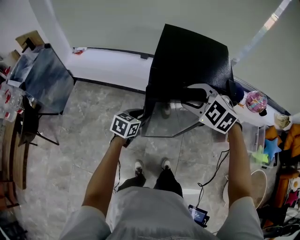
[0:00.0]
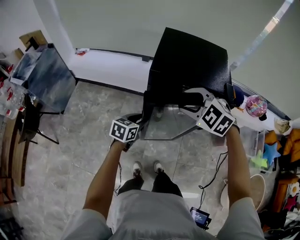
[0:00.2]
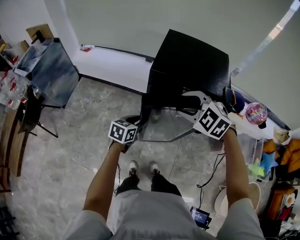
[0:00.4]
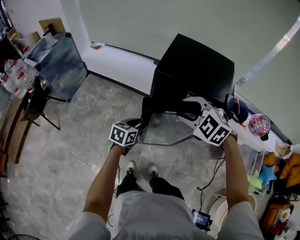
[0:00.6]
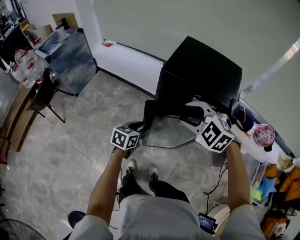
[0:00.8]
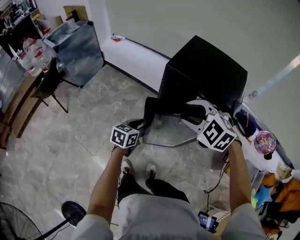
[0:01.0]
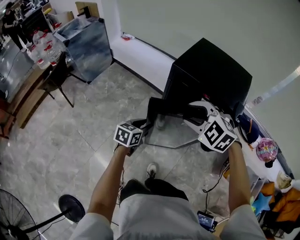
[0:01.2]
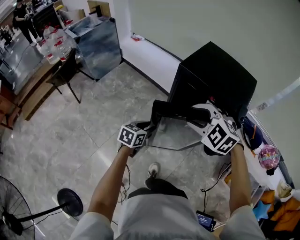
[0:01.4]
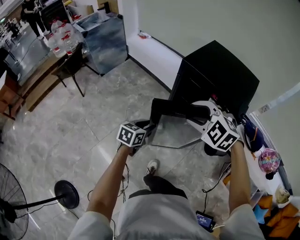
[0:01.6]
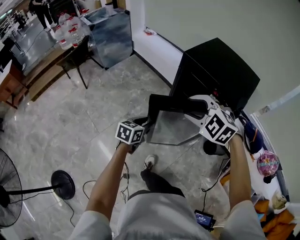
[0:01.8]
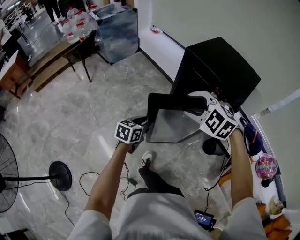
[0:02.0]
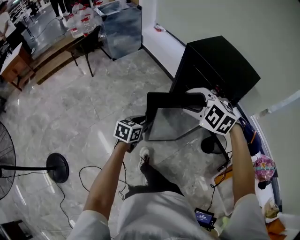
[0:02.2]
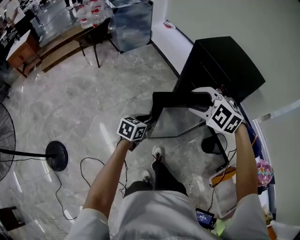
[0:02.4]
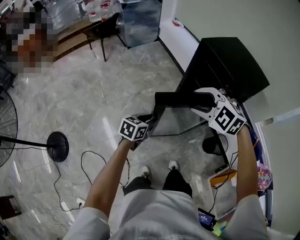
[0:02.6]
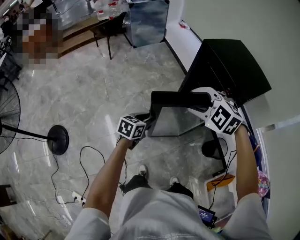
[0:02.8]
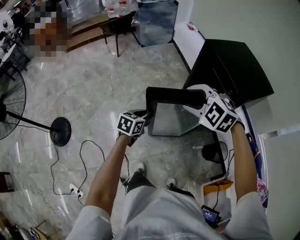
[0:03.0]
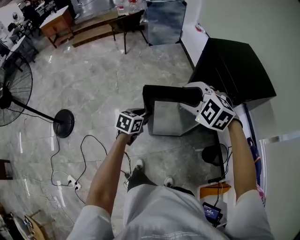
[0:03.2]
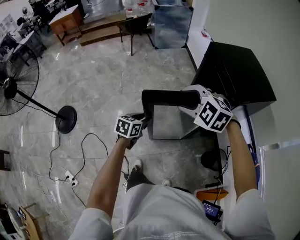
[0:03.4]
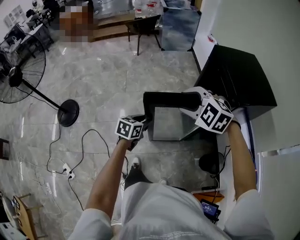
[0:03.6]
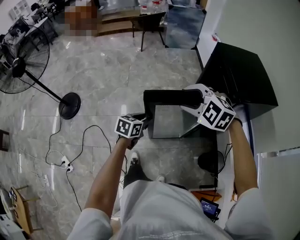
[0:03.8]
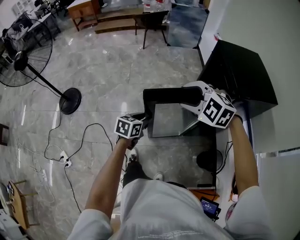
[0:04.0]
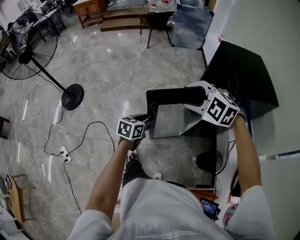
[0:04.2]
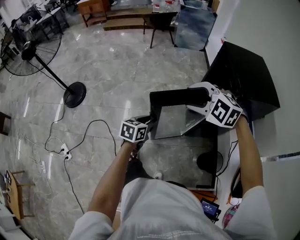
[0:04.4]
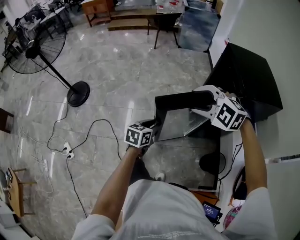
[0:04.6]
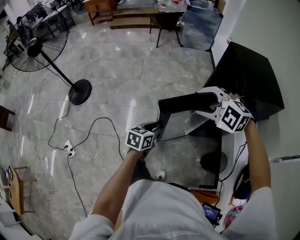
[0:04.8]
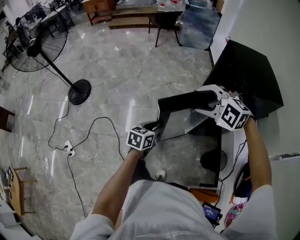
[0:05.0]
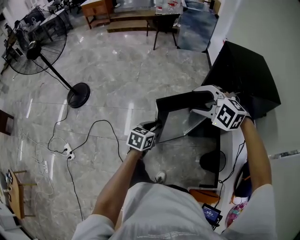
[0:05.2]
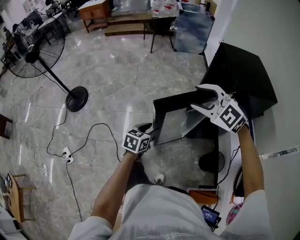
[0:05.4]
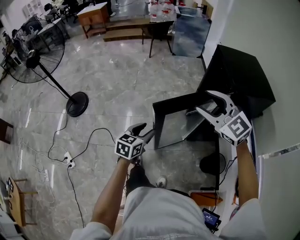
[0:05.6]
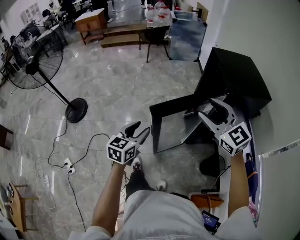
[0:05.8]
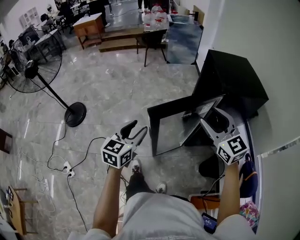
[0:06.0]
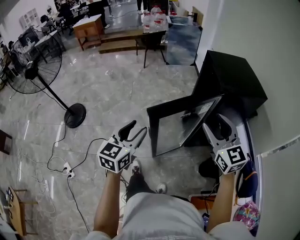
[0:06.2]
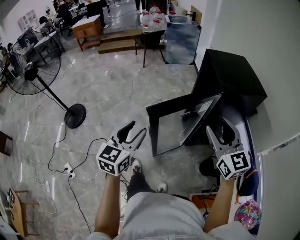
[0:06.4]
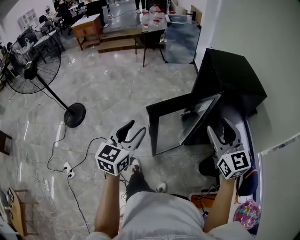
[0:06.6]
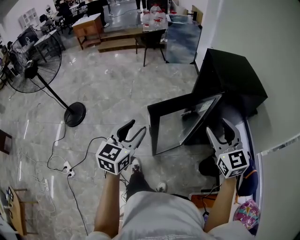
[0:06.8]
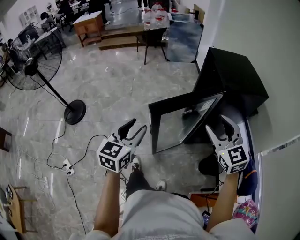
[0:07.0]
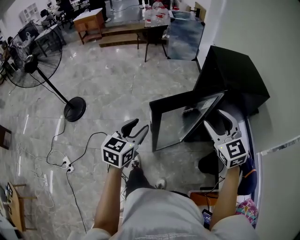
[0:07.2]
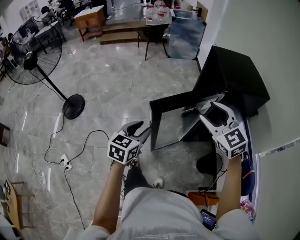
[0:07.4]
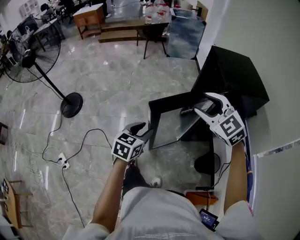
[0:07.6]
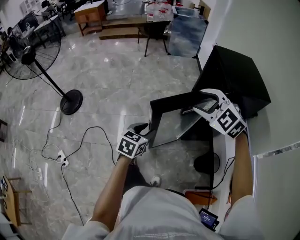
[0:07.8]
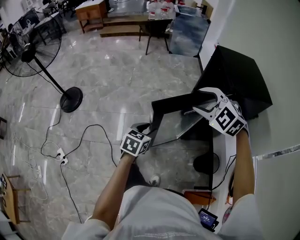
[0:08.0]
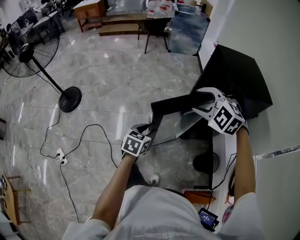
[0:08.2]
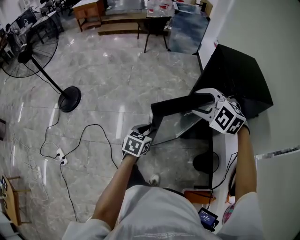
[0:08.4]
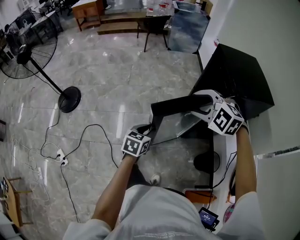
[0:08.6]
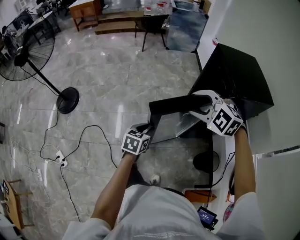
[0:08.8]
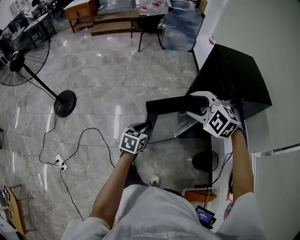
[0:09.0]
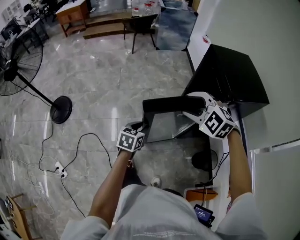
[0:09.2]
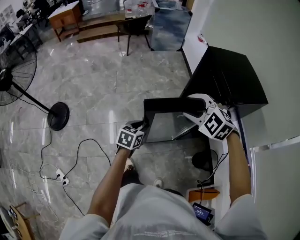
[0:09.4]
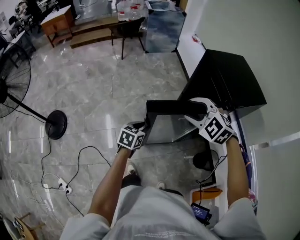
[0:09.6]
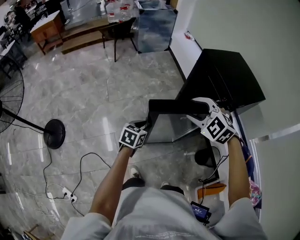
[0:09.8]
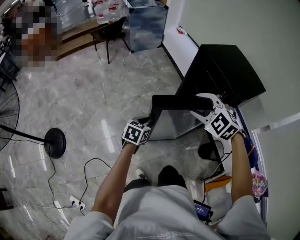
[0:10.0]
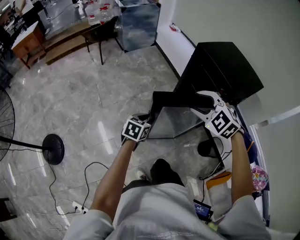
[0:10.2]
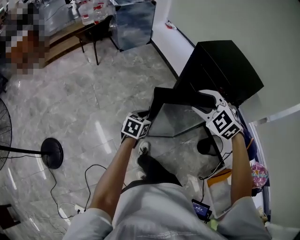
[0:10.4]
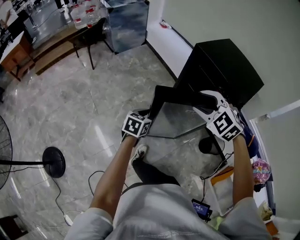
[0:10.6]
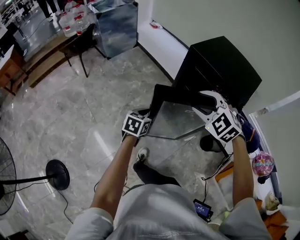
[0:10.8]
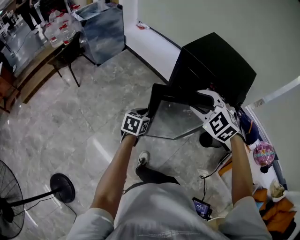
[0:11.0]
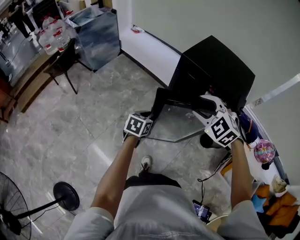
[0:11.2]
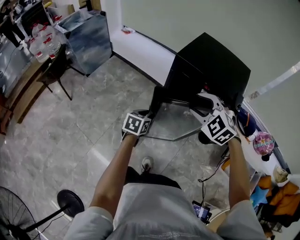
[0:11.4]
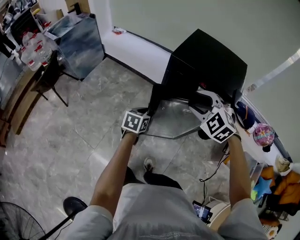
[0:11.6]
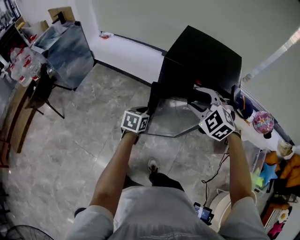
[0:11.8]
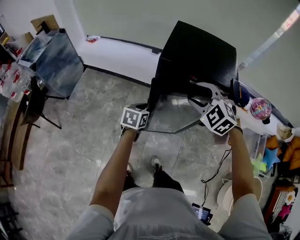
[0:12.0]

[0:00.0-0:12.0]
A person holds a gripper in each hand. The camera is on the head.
0.0 to 1.6 s: The right gripper moves approximately 10 cm, and rotates some 30 degrees, while the left gripper shifts by approximately 15 cm, and turns by about 30 degrees.
1.6 to 3.0 s: The right gripper ends up roughly 15 cm from where it was, and changes its angle by roughly 30 degrees. The left gripper shifts by approximately 20 cm, and changes its angle by approximately 30 degrees.
3.0 to 4.4 s: Both grippers travel together backward, about 15 cm. The right gripper swivels about 30 degrees, while the left gripper changes its angle by roughly 20 degrees.
4.4 to 6.0 s: The left gripper travels upward and backward by roughly 20 cm, and turns by some 30 degrees, while the right gripper moves backward, to the right and upward, approximately 15 cm, and points its fingers about 30 degrees further upward.
6.0 to 7.6 s: The right gripper changes place by roughly 5 cm, and turns by approximately 30 degrees; the left gripper travels downward by about 5 cm.
7.6 to 9.0 s: The left gripper travels downward and forward by approximately 10 cm. Meanwhile the right gripper moves forward, downward and to the left, roughly 10 cm, and rotates approximately 20 degrees.
9.0 to 10.4 s: The right gripper changes place by approximately 15 cm, and rotates about 40 degrees. The left gripper moves about 25 cm, and rotates about 30 degrees.
10.4 to 12.0 s: The left gripper ends up approximately 30 cm from where it was, and swivels some 40 degrees. Meanwhile the right gripper moves about 20 cm, and turns by some 40 degrees.

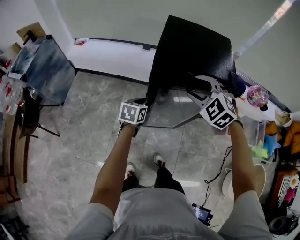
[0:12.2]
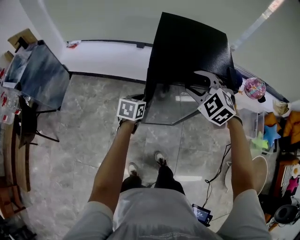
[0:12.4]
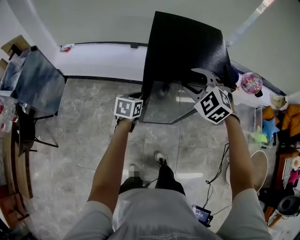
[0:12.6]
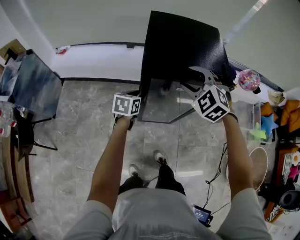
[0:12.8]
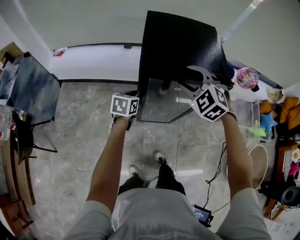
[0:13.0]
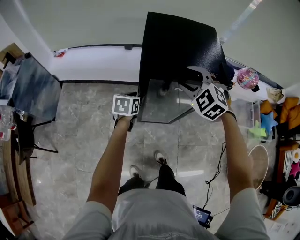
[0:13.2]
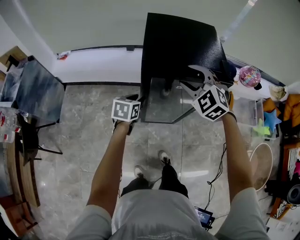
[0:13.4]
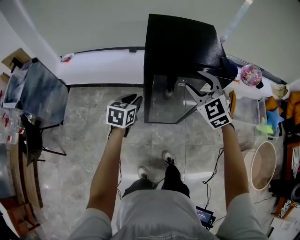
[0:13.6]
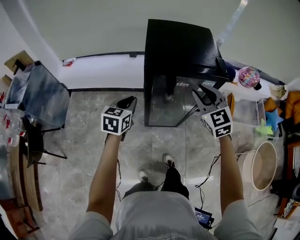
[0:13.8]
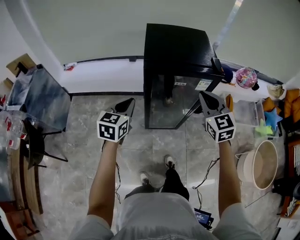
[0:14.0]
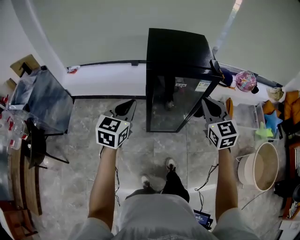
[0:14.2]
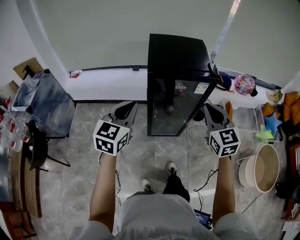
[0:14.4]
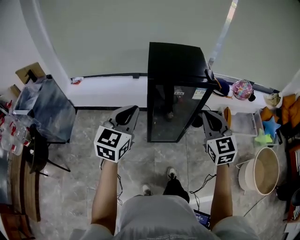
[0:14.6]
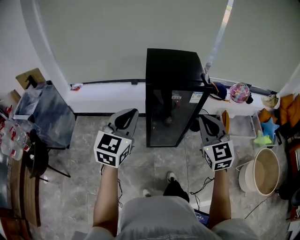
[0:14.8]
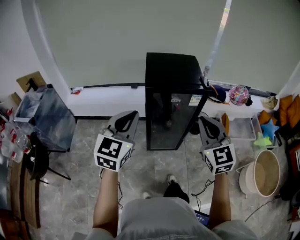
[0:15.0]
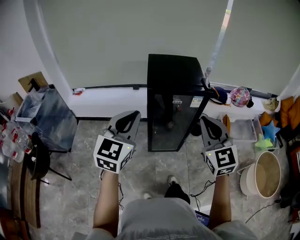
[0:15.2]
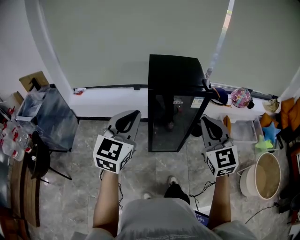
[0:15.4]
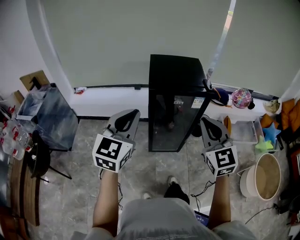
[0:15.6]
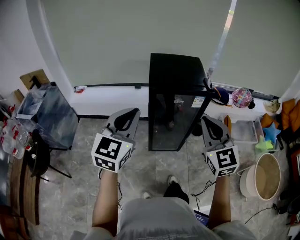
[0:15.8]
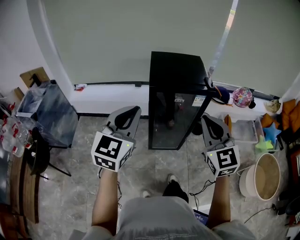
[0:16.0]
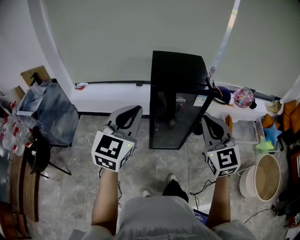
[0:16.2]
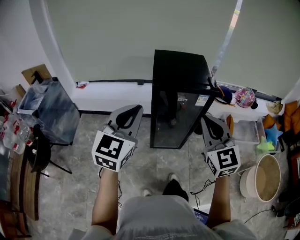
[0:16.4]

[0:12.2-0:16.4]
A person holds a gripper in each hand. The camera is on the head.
12.2 to 13.6 s: The left gripper shifts some 5 cm upward; the right gripper rotates about 30 degrees.
13.6 to 15.0 s: The left gripper heads upward and backward, covering about 35 cm, and swivels about 40 degrees; the right gripper heads backward and upward, covering approximately 25 cm, swivels roughly 30 degrees, and closes.
15.0 to 16.4 s: The grippers move only a little.

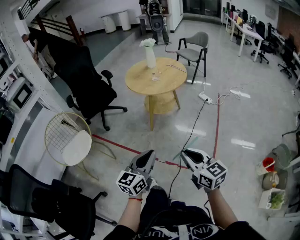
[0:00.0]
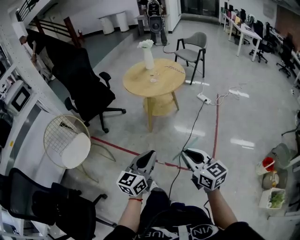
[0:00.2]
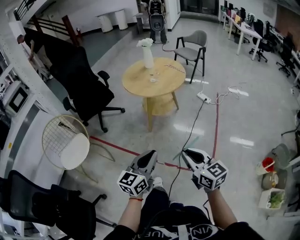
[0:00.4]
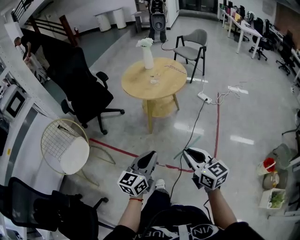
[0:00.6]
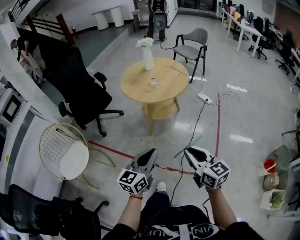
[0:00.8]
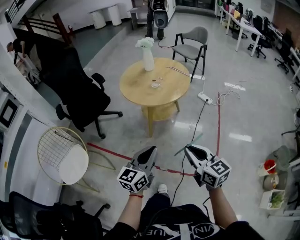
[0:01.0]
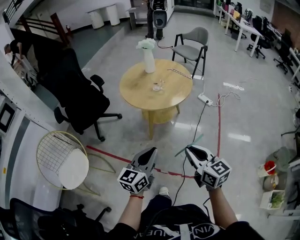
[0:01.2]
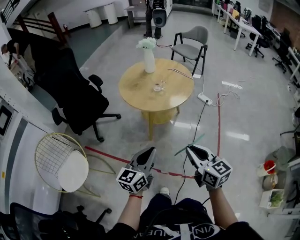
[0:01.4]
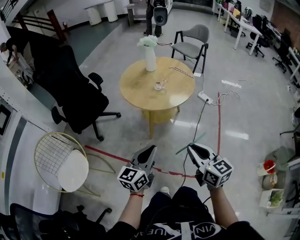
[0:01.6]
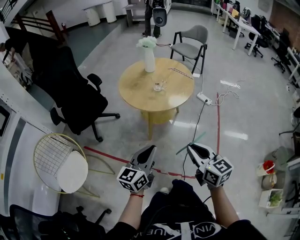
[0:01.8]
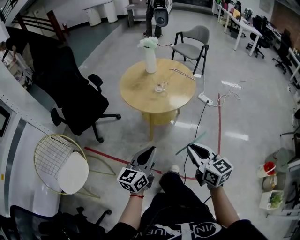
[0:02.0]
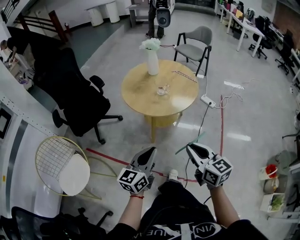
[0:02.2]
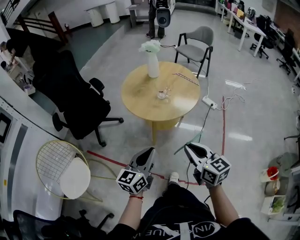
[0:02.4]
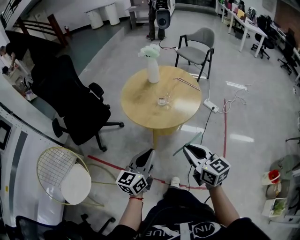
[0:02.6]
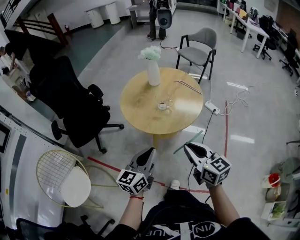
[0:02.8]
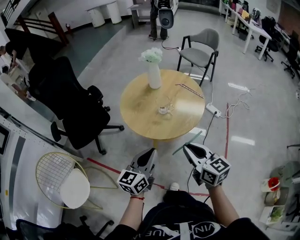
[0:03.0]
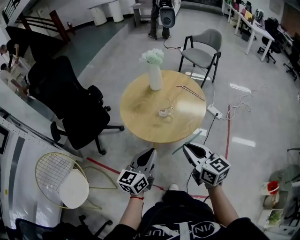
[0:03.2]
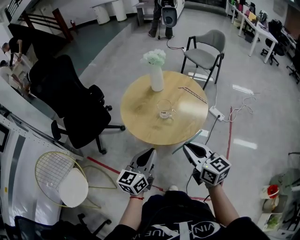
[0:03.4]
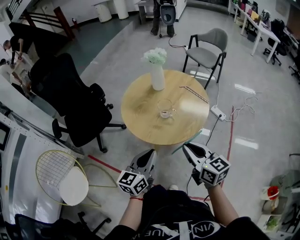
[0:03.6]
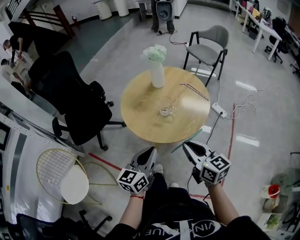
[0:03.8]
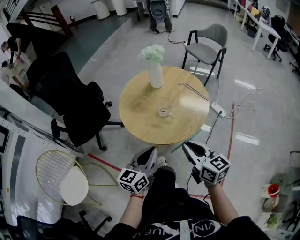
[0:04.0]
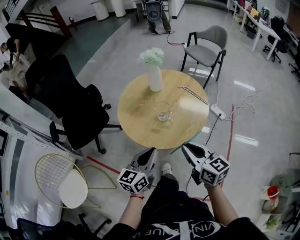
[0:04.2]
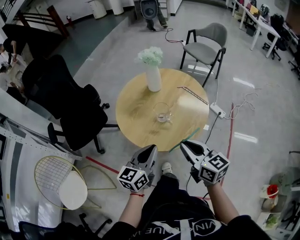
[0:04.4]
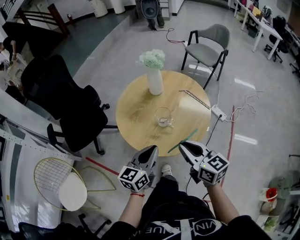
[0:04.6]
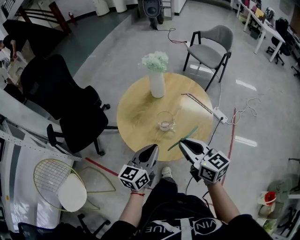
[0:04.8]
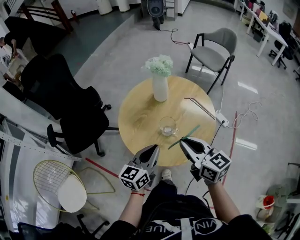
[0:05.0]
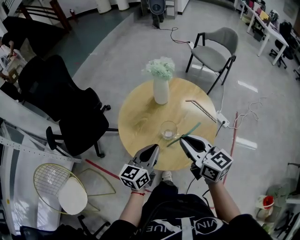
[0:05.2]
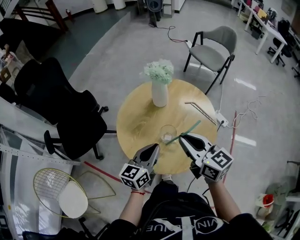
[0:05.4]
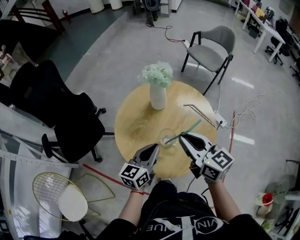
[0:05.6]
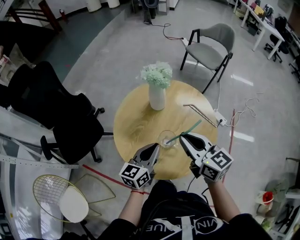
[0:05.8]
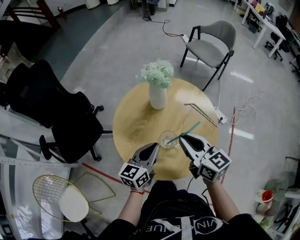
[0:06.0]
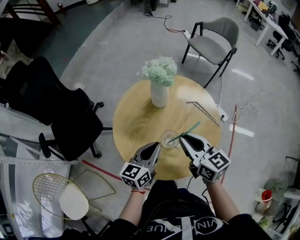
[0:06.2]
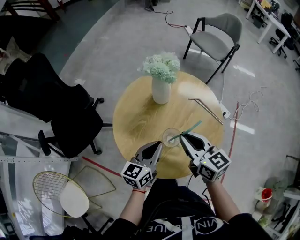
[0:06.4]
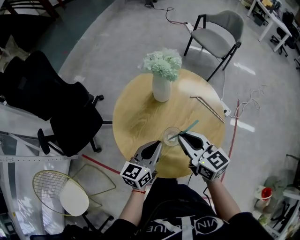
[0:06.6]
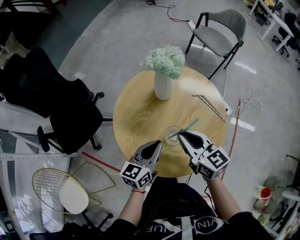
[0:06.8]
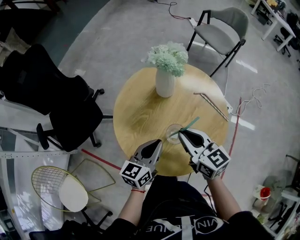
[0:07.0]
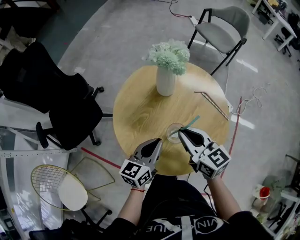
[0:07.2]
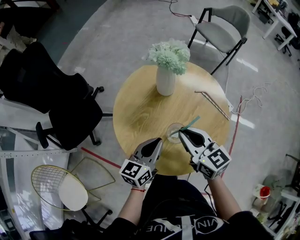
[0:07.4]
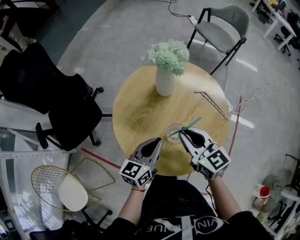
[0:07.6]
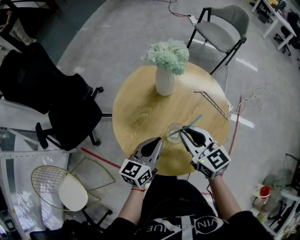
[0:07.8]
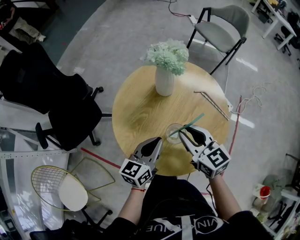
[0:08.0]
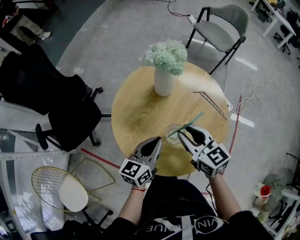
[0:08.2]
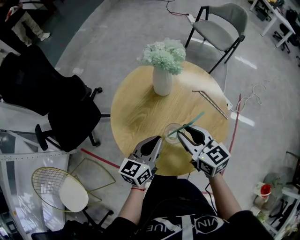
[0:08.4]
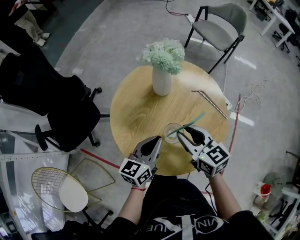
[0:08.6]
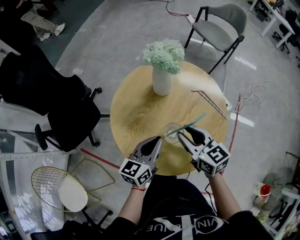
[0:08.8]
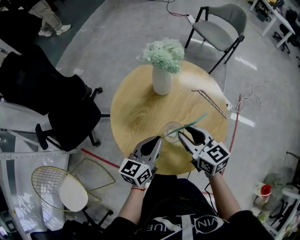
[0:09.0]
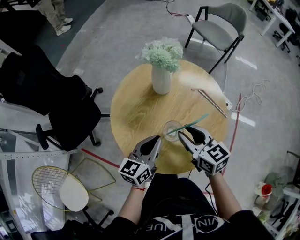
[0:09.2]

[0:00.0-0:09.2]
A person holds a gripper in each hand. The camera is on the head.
0.0 to 1.6 s: The grippers both shift forward by about 25 cm.
1.6 to 3.0 s: The two grippers go roughly 20 cm forward.
3.0 to 4.6 s: Both grippers move forward, about 15 cm.
4.6 to 6.2 s: Both grippers move forward, some 15 cm.
6.2 to 7.6 s: The right gripper shifts by approximately 5 cm.
7.6 to 9.2 s: The grippers stay close to where they were, moving slightly.
